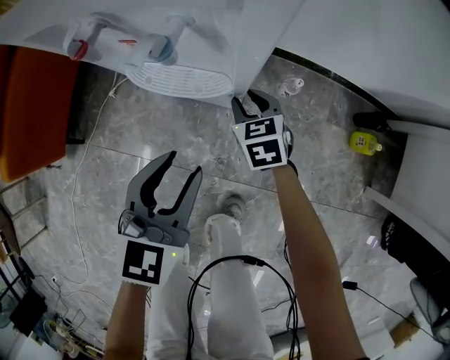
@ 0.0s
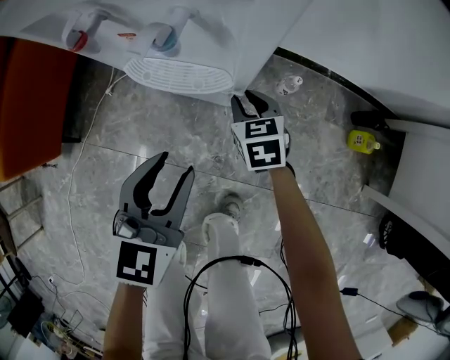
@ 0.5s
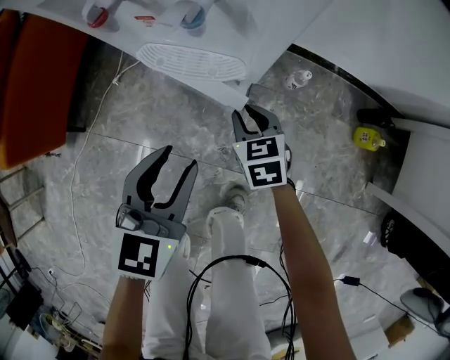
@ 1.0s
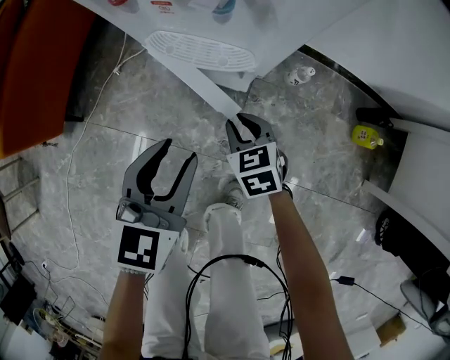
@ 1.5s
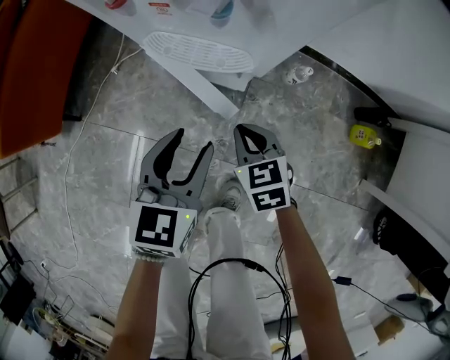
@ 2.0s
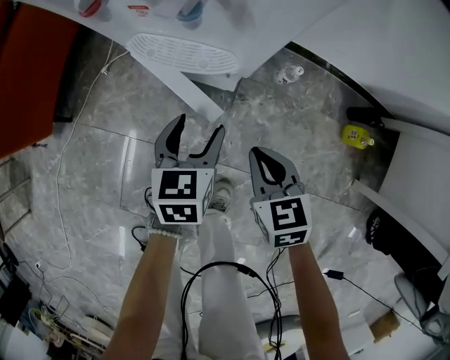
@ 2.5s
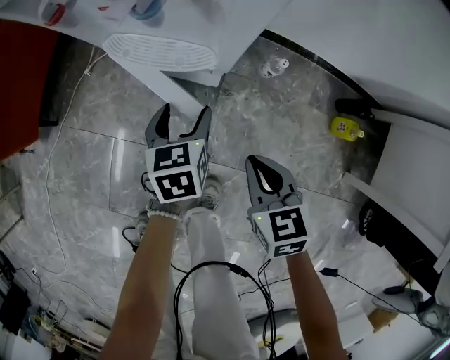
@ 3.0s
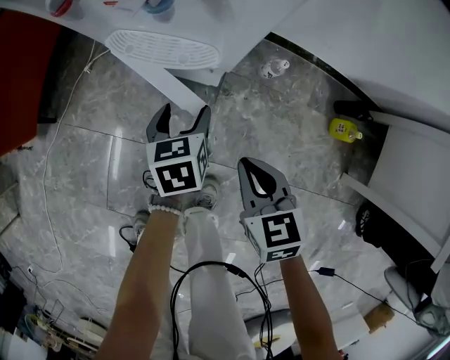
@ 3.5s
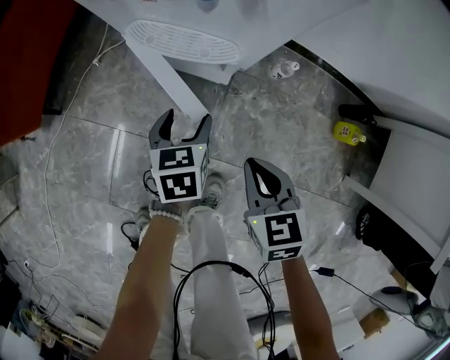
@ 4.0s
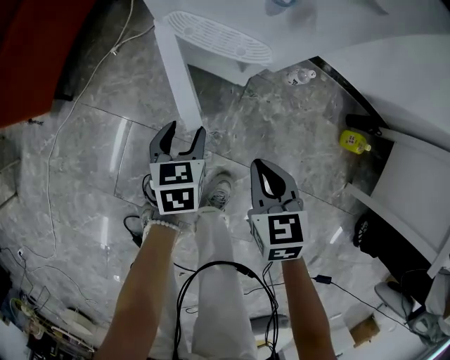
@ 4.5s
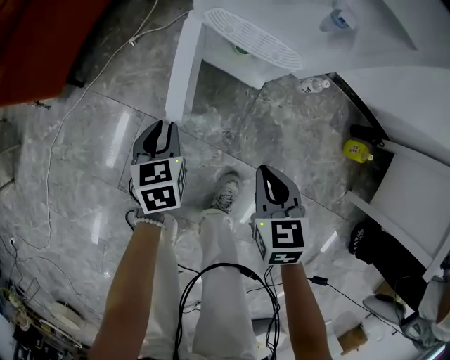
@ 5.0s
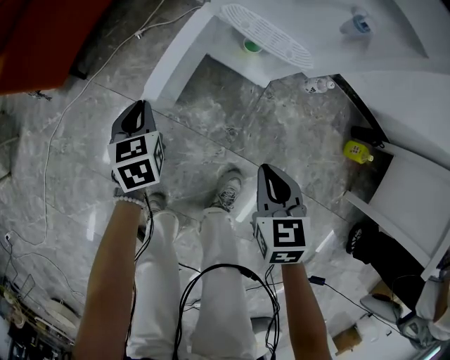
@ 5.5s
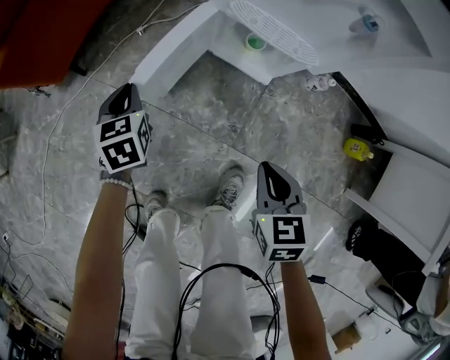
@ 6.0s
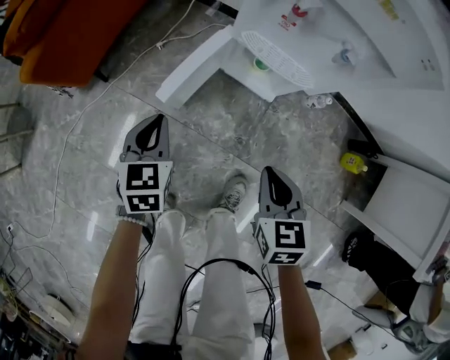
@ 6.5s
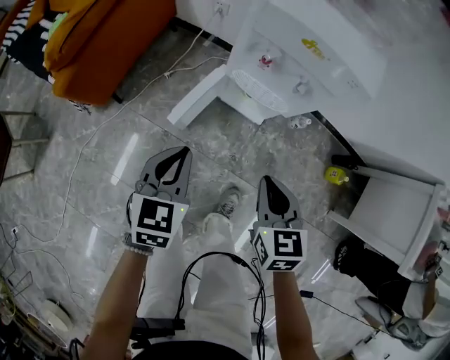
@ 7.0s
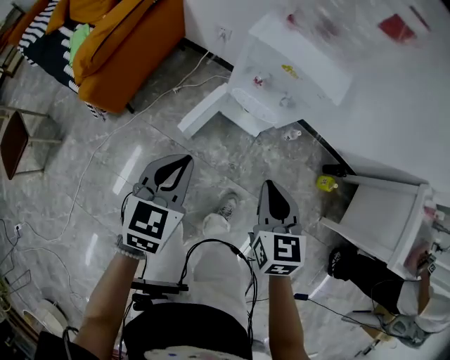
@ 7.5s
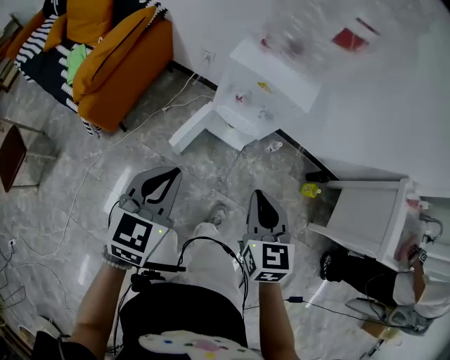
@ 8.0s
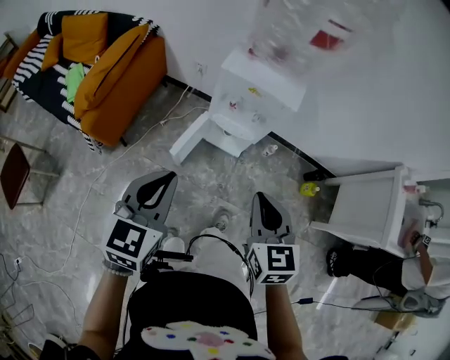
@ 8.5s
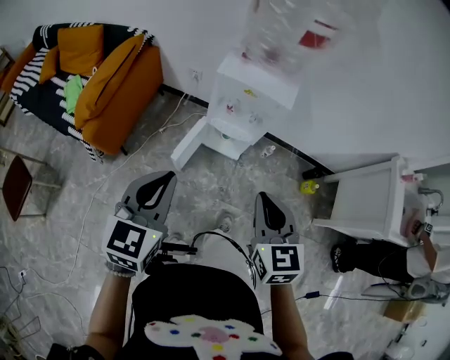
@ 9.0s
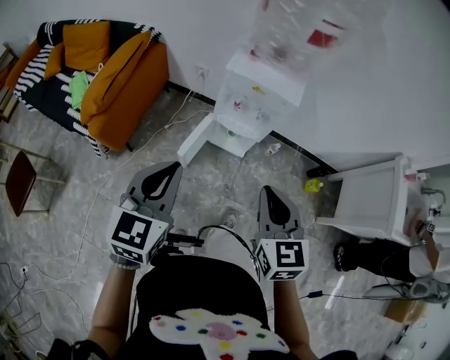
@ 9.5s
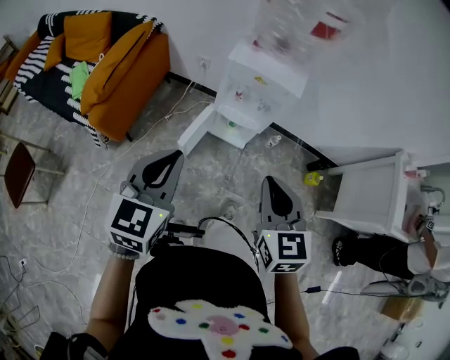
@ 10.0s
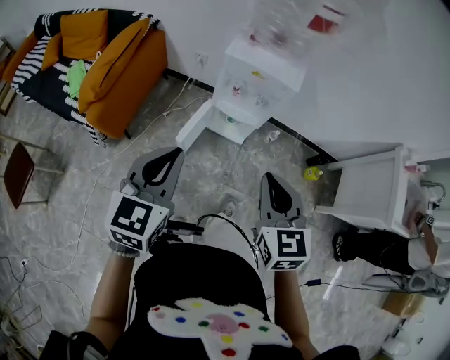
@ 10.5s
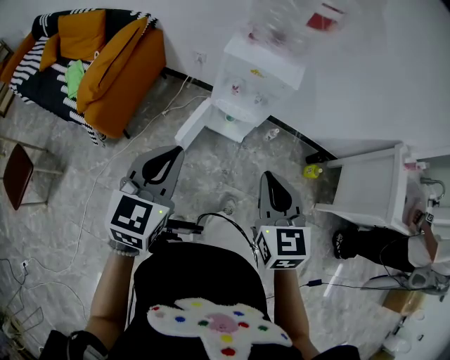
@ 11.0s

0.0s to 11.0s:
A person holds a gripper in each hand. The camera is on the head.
0.0s to 2.0s: The right gripper moves backward, about 15 cm, and closes, while the left gripper shifts by about 5 cm.
2.0s to 3.5s: The right gripper goes about 10 cm to the right, backward and upward. Meanwhile the left gripper shifts some 15 cm downward, turns by about 20 degrees, and opens up.
3.5s to 5.5s: The right gripper moves to the left, approximately 10 cm. Meanwhile the left gripper moves to the left, about 30 cm, and closes its fingers.
5.5s to 7.5s: The two grippers go some 40 cm upward. The left gripper turns by some 30 degrees.
7.5s to 9.0s: The grippers both shift upward and backward by approximately 15 cm.
9.0s to 11.0s: The grippers make only small movements.

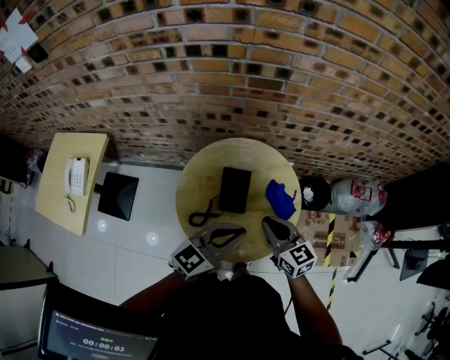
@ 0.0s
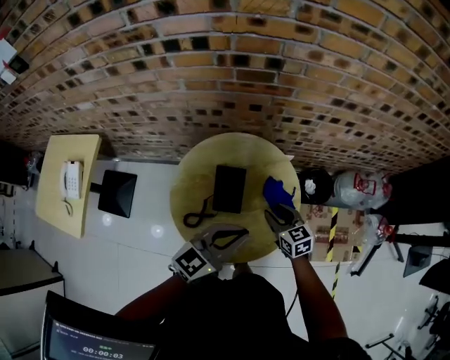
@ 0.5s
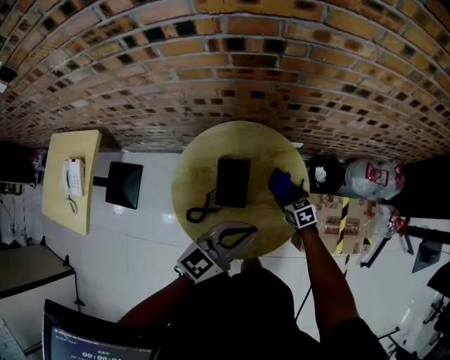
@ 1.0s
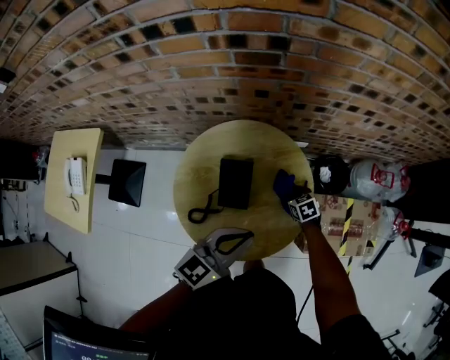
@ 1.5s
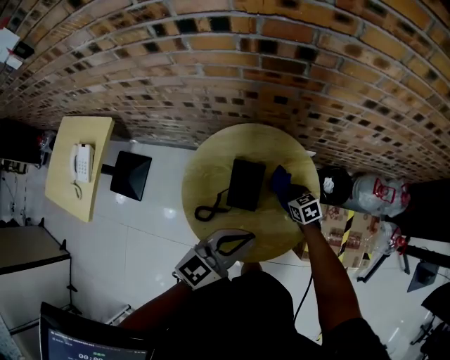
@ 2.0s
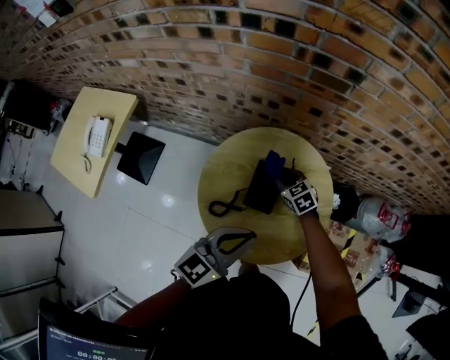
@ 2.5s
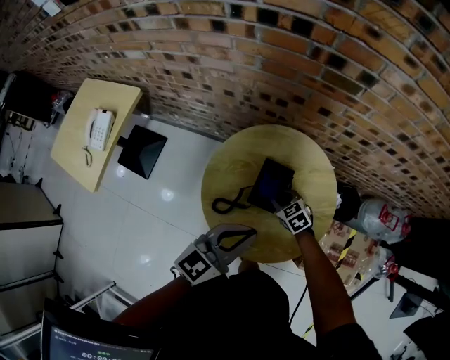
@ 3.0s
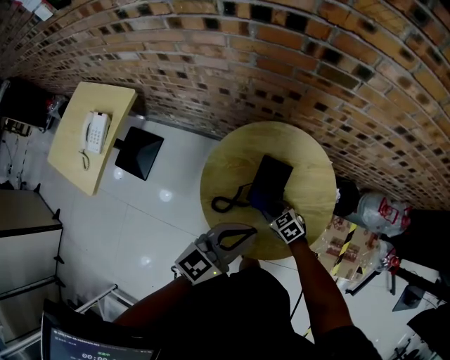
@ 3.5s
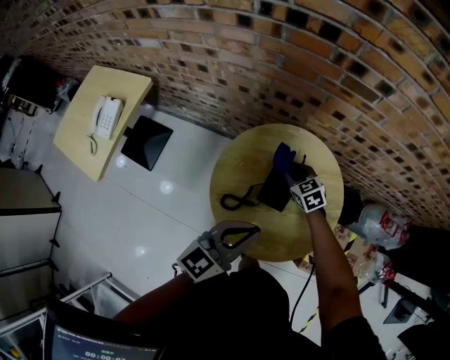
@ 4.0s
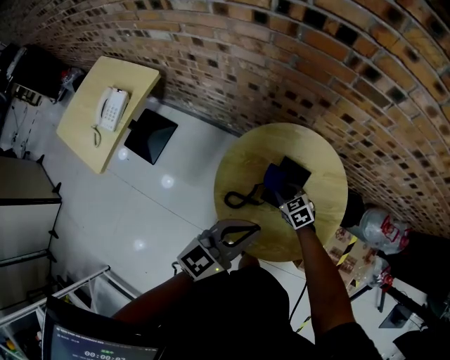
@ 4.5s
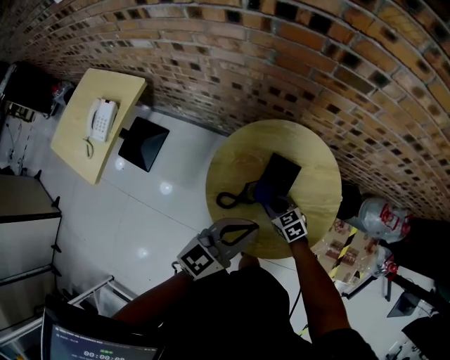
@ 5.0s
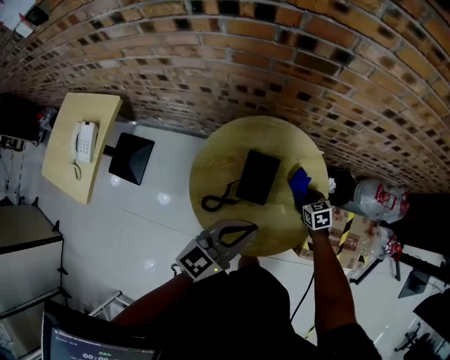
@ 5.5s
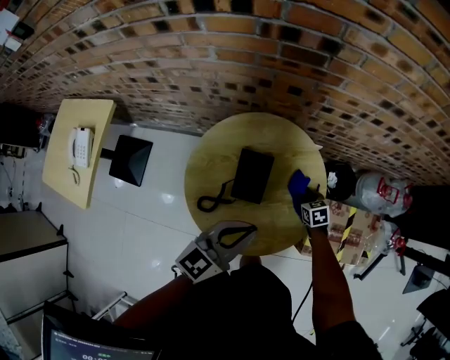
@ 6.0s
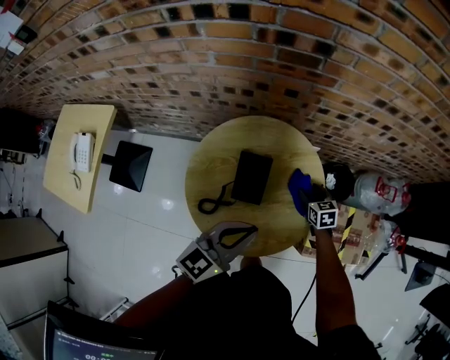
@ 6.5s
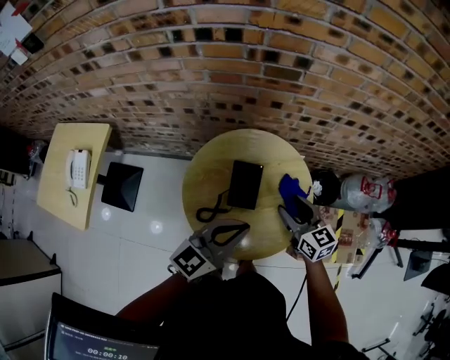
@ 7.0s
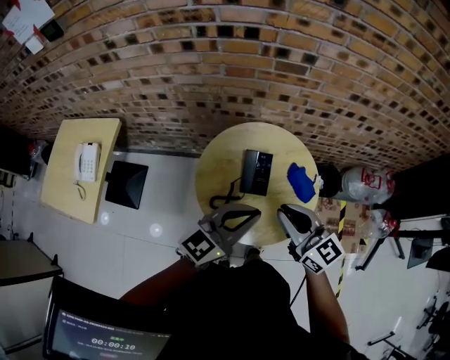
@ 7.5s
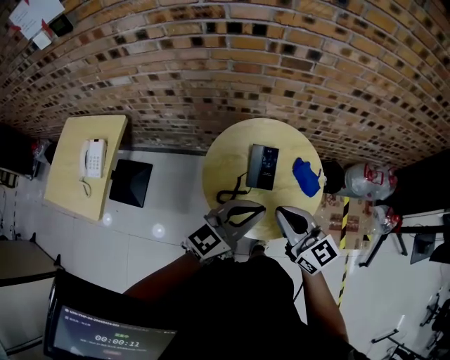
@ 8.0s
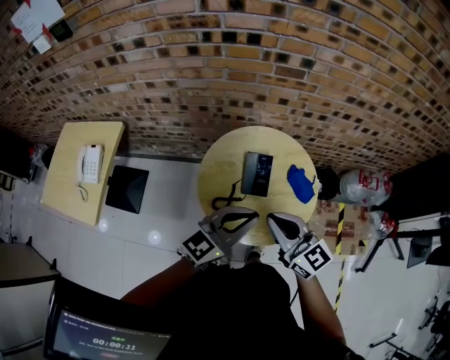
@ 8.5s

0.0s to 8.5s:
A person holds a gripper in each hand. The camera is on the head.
0.0s to 2.0s: The left gripper shifts by some 5 cm, while the right gripper travels downward and forward by some 30 cm, changes its angle by approximately 30 degrees, and opens, then closes again.
2.0s to 4.0s: The right gripper moves to the left and forward, roughly 15 cm, and changes its angle by approximately 20 degrees. The left gripper moves to the left, approximately 10 cm.
4.0s to 6.5s: The right gripper shifts approximately 25 cm to the right, changes its angle by some 30 degrees, and opens up. The left gripper shifts roughly 10 cm to the right.
6.5s to 8.5s: The right gripper heads upward, backward and to the left, covering roughly 50 cm, angles its fingers upward, by approximately 40 degrees, and closes up. Meanwhile the left gripper travels upward, backward and to the left by about 15 cm.

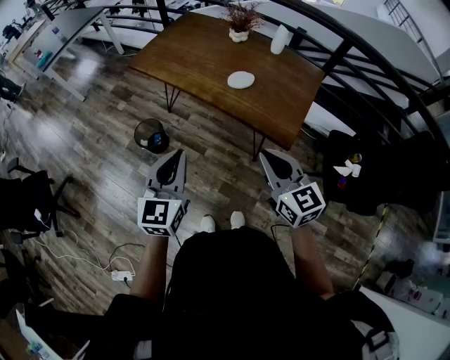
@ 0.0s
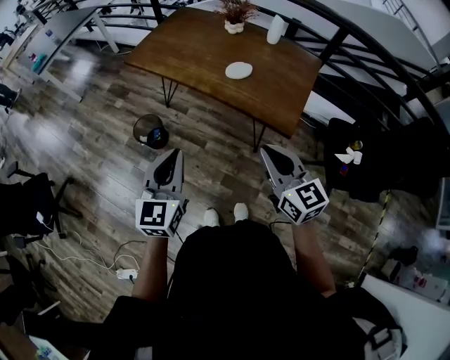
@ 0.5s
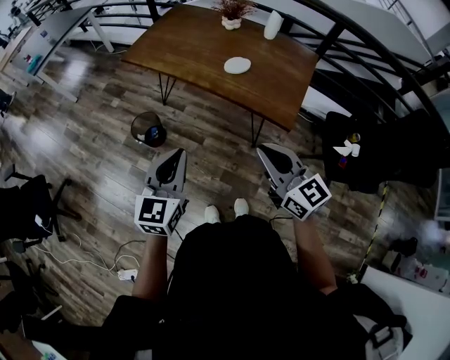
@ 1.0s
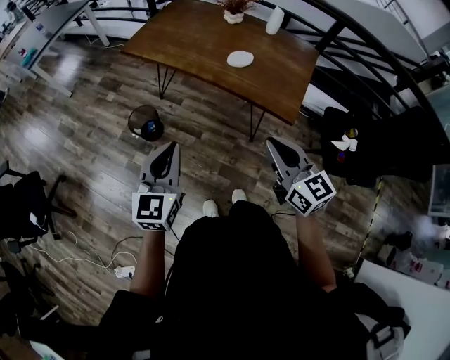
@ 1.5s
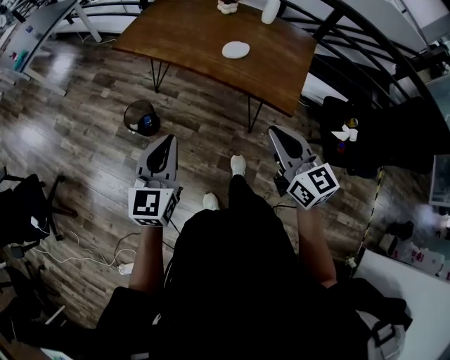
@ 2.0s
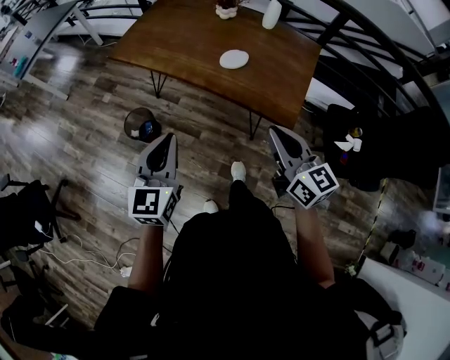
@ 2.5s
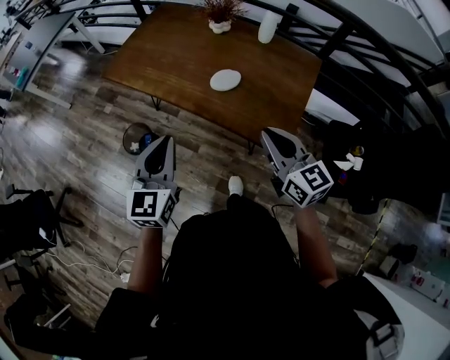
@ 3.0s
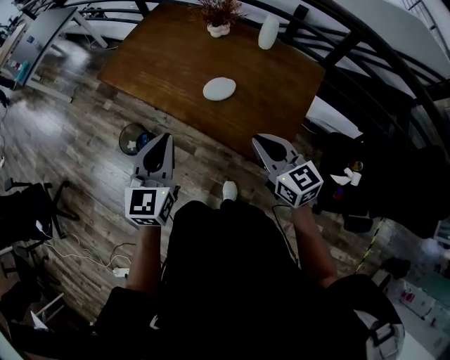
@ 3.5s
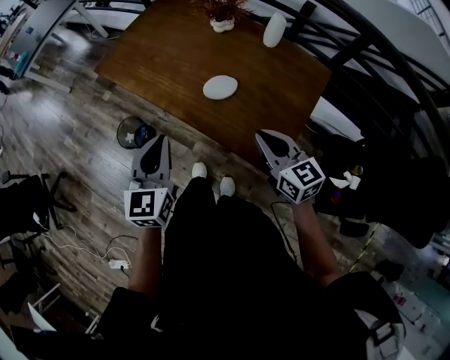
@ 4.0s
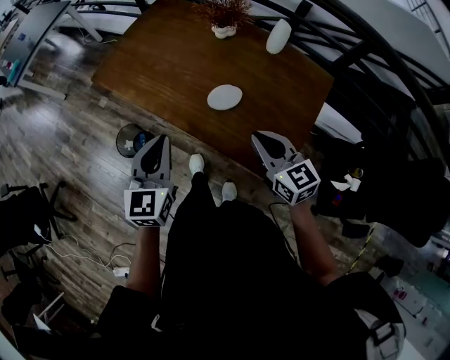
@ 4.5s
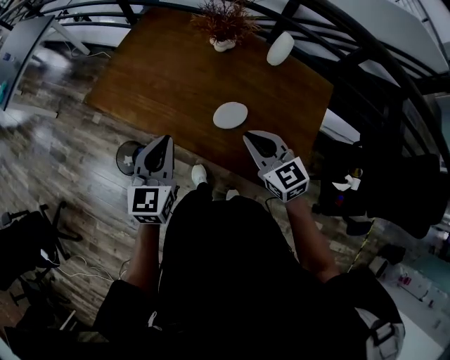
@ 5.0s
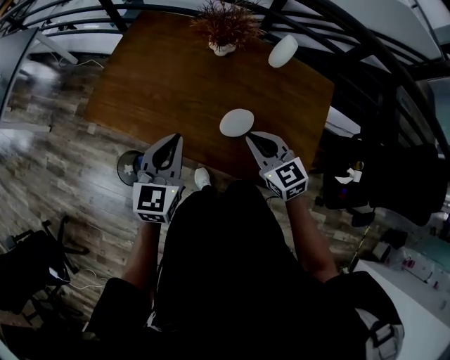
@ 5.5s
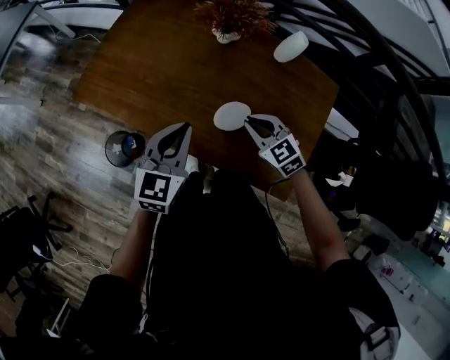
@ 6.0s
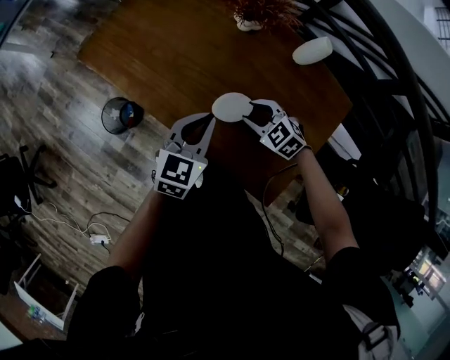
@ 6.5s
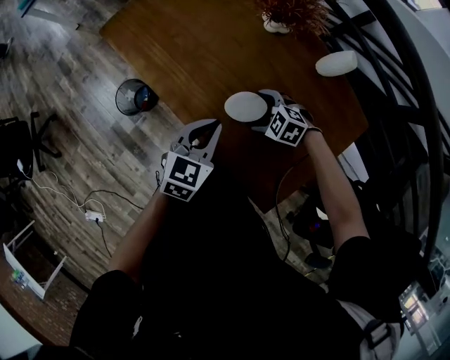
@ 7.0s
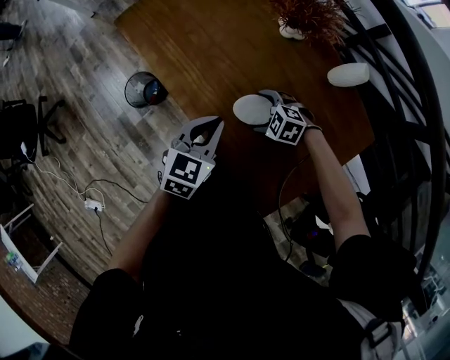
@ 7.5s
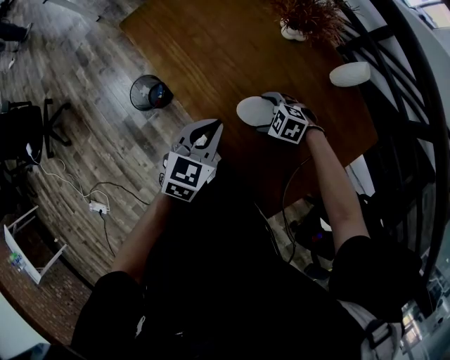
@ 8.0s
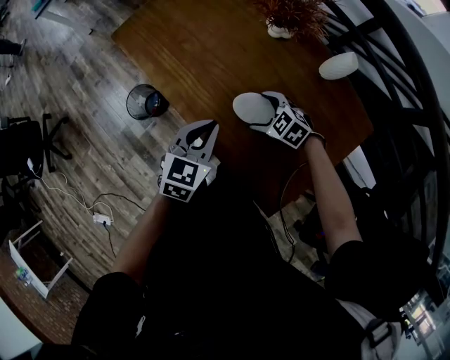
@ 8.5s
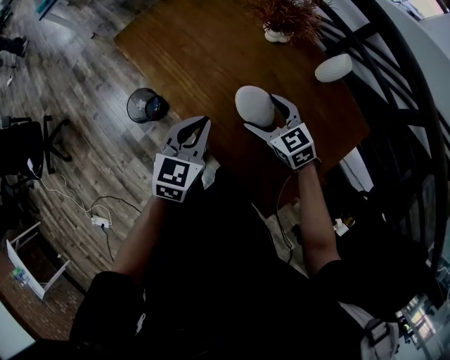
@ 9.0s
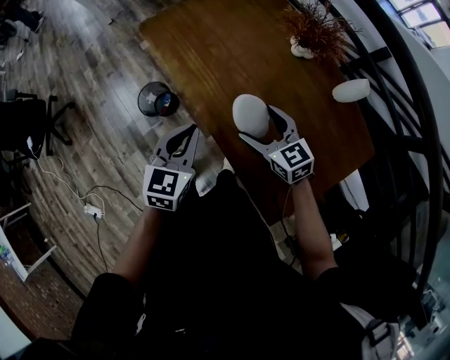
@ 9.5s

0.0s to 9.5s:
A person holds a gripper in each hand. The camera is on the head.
0.0s to 2.0s: The left gripper heads to the left, covering some 5 cm.
2.0s to 4.0s: Both grippers travel together forward and to the right, about 30 cm.
4.0s to 5.5s: The left gripper heads forward, covering roughly 20 cm, and rotates approximately 20 degrees. Meanwhile the right gripper moves forward and to the left, some 20 cm.
5.5s to 7.5s: The left gripper moves about 15 cm, and swivels about 20 degrees. The right gripper heads downward, covering about 20 cm, angles its fingers downward, by some 40 degrees, and opens its fingers.
7.5s to 9.5s: The right gripper shifts about 15 cm upward, and angles its fingers upward, by roughly 40 degrees. Meanwhile the left gripper travels to the left and upward by approximately 10 cm.
